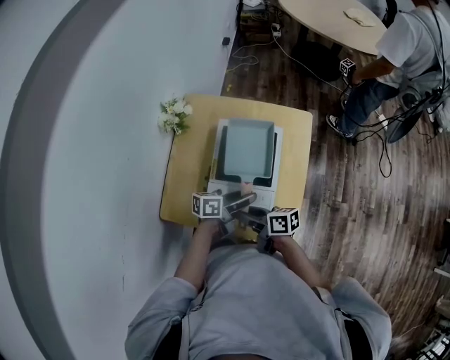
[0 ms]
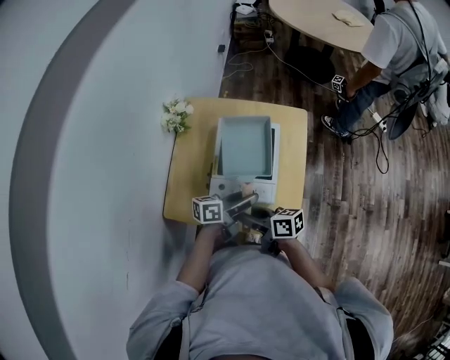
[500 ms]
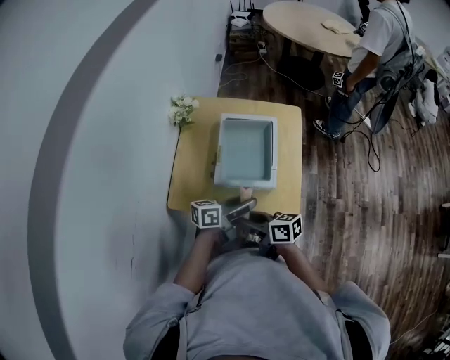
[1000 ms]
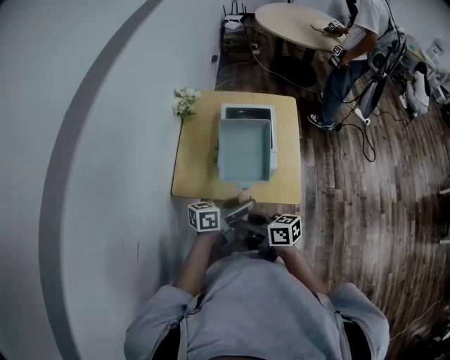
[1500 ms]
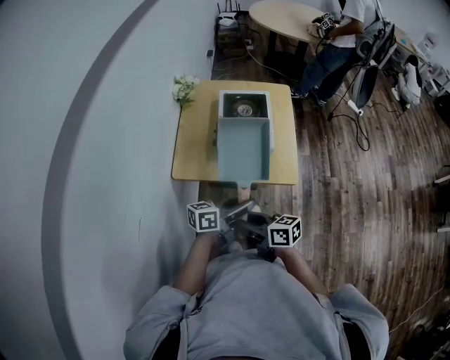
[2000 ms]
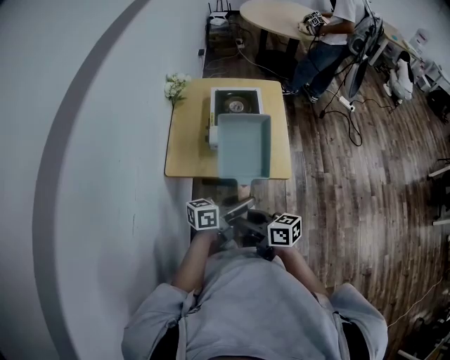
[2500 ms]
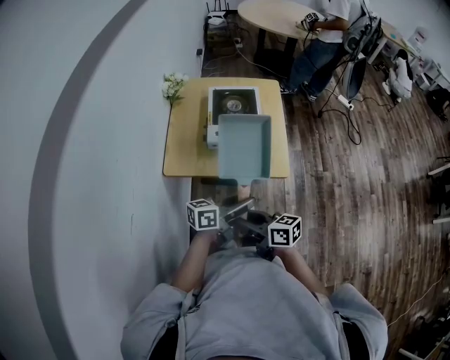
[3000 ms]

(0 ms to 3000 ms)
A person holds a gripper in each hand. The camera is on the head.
0 ms - 1500 ms: The left gripper shifts by approximately 25 cm. The right gripper moves about 20 cm.
1500 ms - 3000 ms: The grippers both shift backward by about 10 cm.

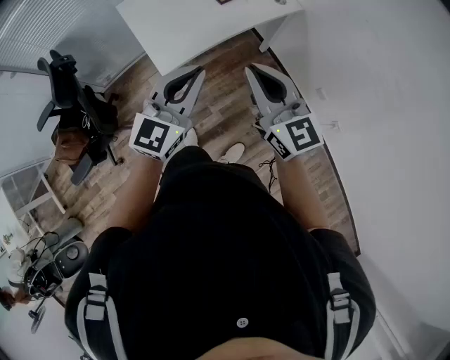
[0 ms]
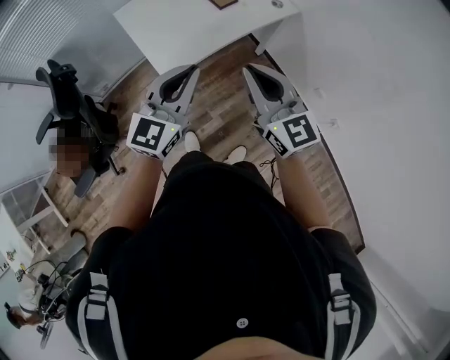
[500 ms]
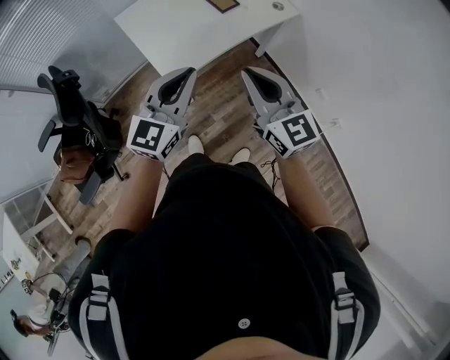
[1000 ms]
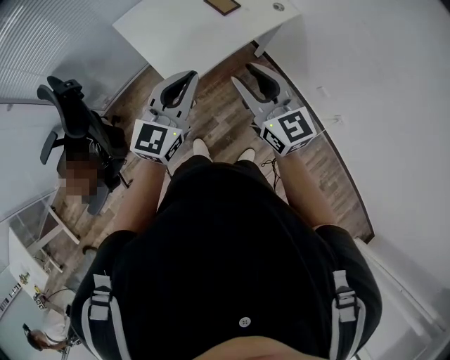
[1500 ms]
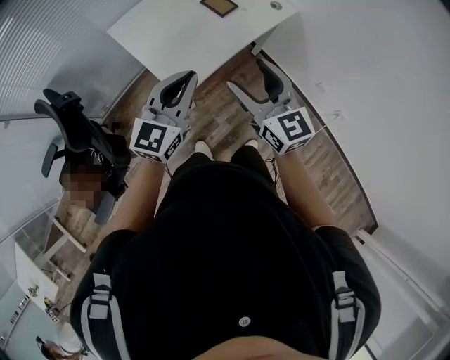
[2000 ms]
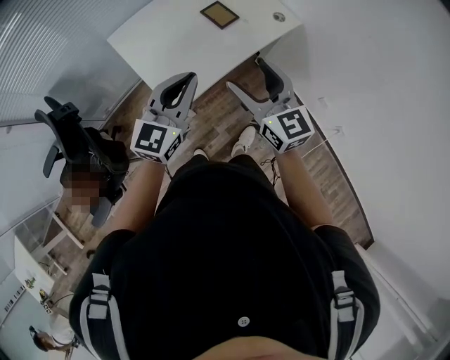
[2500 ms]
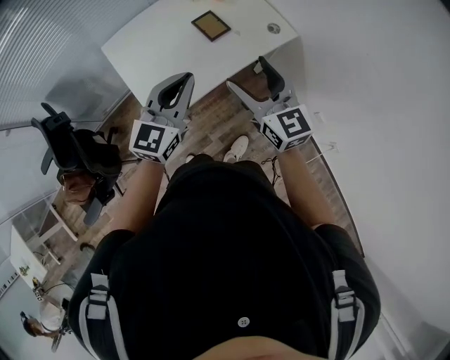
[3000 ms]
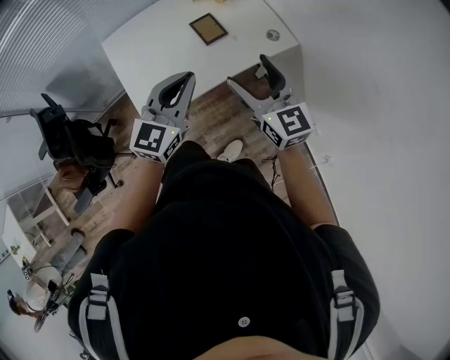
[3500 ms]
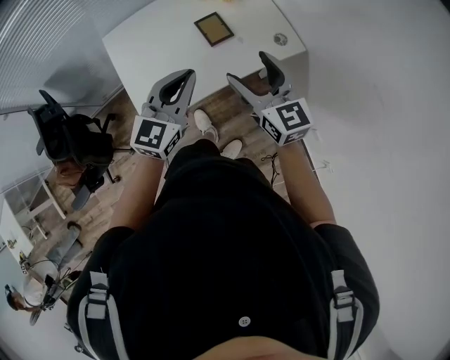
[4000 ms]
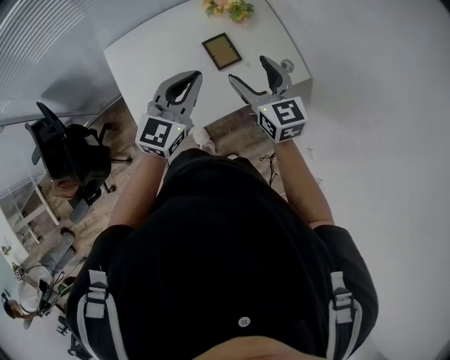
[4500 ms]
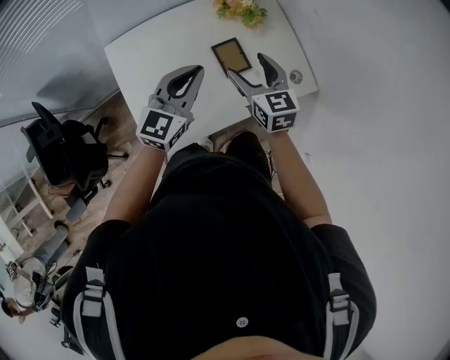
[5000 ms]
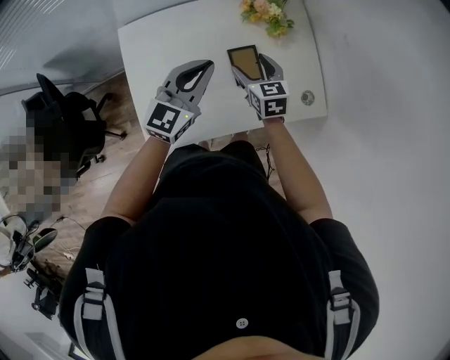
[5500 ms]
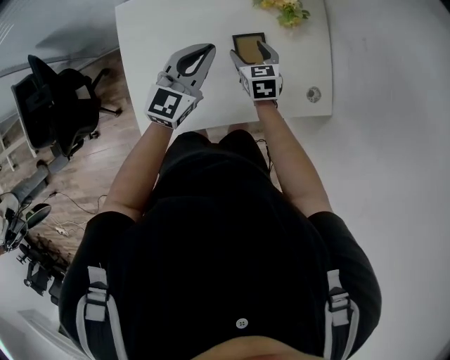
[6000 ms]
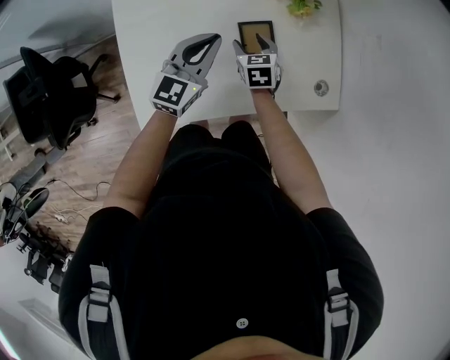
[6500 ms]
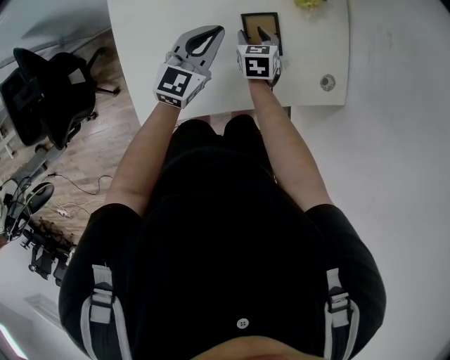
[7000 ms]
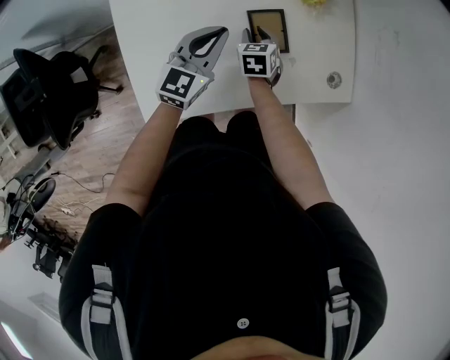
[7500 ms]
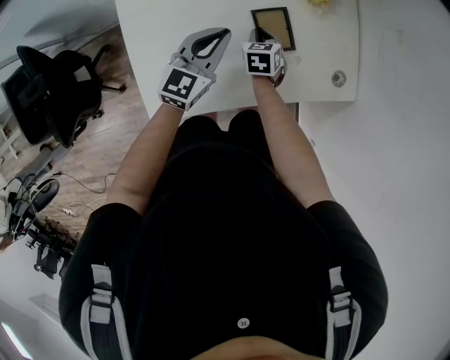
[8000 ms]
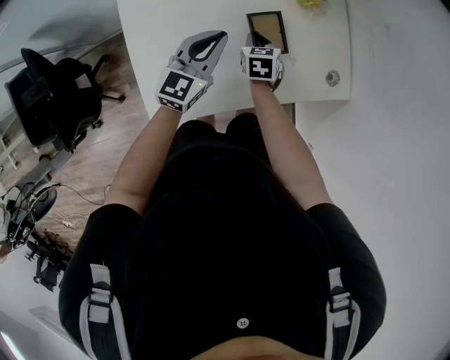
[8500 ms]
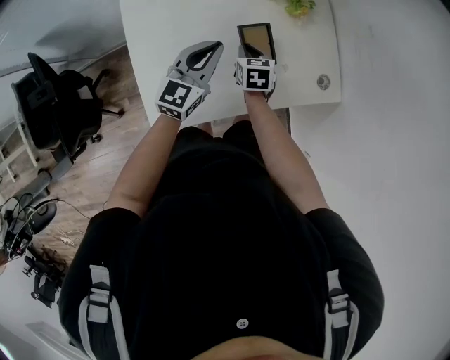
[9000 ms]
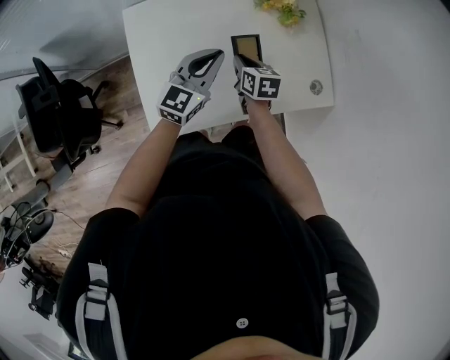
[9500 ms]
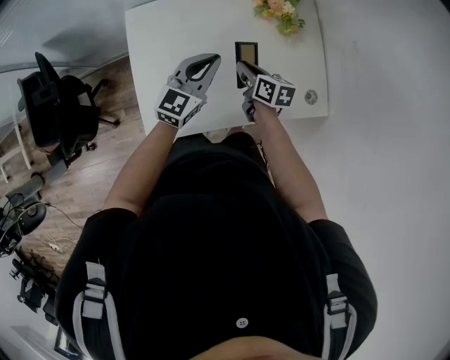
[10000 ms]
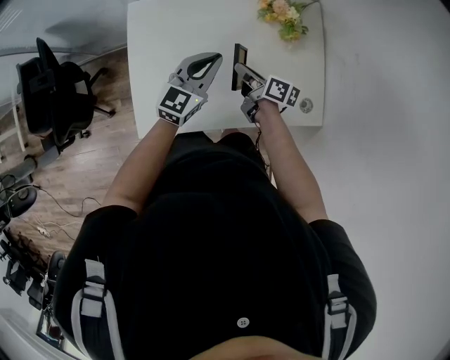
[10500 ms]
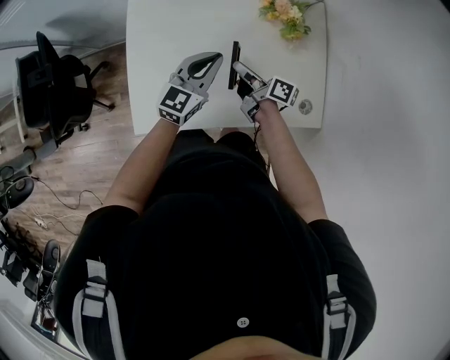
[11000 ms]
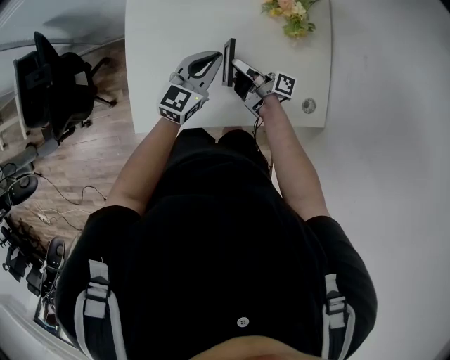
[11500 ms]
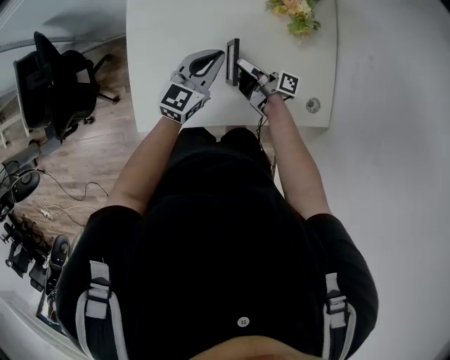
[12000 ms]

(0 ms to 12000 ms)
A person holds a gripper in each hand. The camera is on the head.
0 ms - 2000 ms: The grippers both shift to the left and forward by about 15 cm. The right gripper opens up.
2000 ms - 4000 ms: Both grippers travel together forward and to the right, approximately 30 cm.
4000 ms - 6000 ms: Both grippers move forward and downward, some 35 cm. The right gripper angles its fingers downward, by some 40 degrees.
6000 ms - 8000 ms: The two grippers go some 10 cm downward. The right gripper closes up.
8000 ms - 10000 ms: The left gripper is displaced upward by roughly 10 cm, while the right gripper travels upward by roughly 15 cm, and rotates about 40 degrees.
10000 ms - 12000 ms: Both grippers move downward, about 5 cm. The right gripper angles its fingers upward, by some 30 degrees.

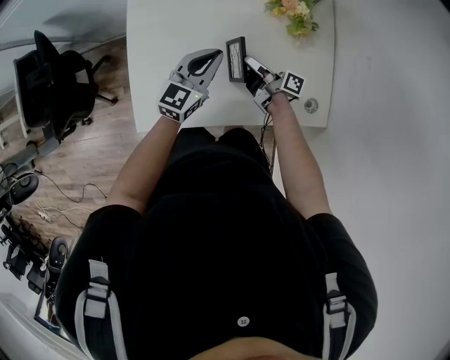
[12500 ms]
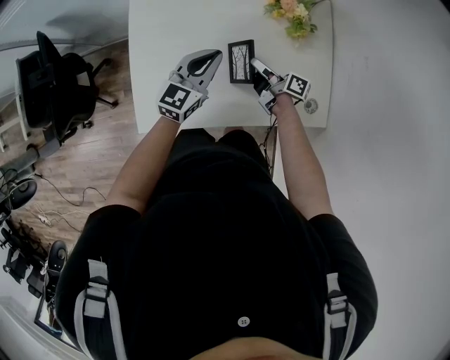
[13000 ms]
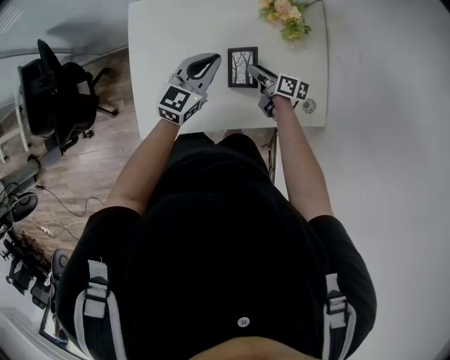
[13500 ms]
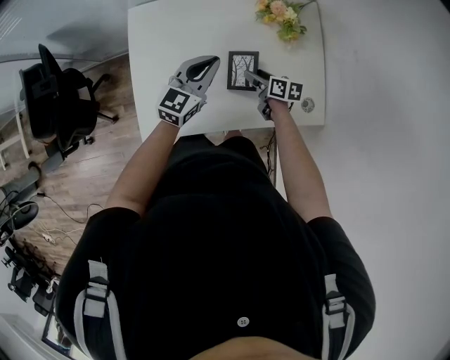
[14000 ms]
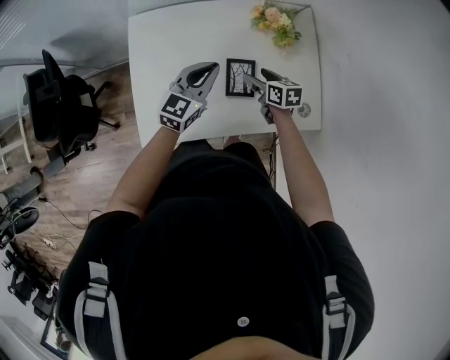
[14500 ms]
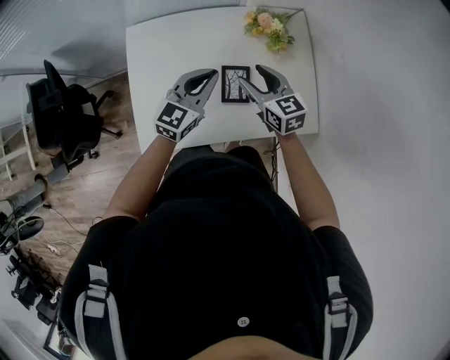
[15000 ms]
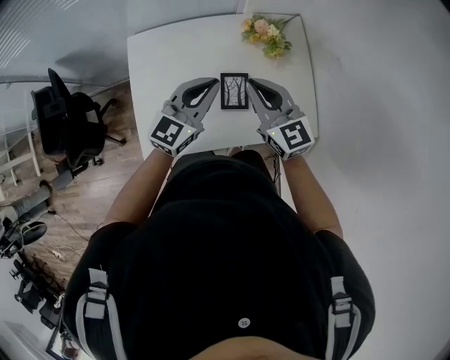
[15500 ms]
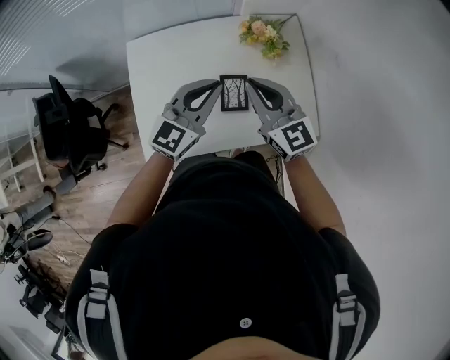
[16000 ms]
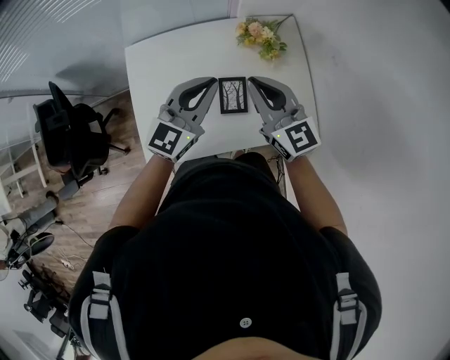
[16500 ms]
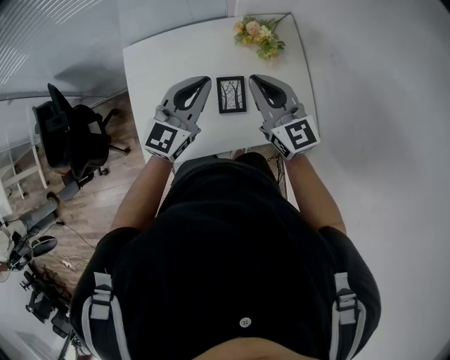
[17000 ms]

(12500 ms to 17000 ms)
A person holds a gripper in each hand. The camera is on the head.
12500 ms - 14500 ms: The right gripper rotates around the line of its fingers by some 50 degrees, counterclockwise from behind, and opens up.
14500 ms - 17000 ms: The left gripper goes about 15 cm upward. The right gripper heads upward, covering roughly 25 cm, tilts its fingers roughly 30 degrees upward, and closes.

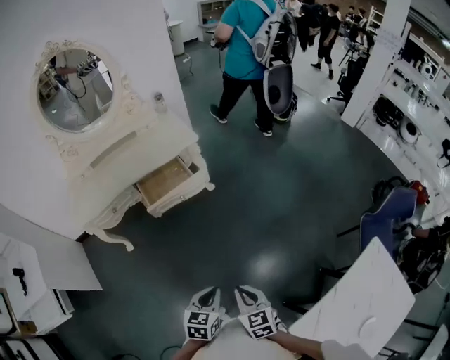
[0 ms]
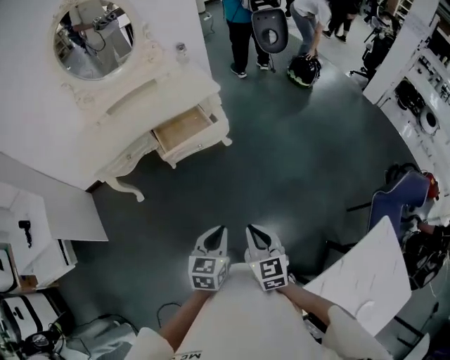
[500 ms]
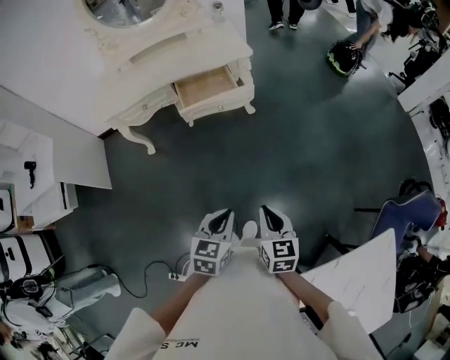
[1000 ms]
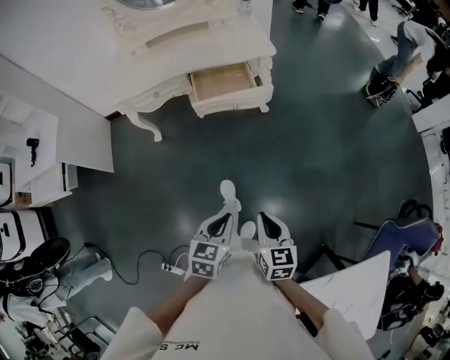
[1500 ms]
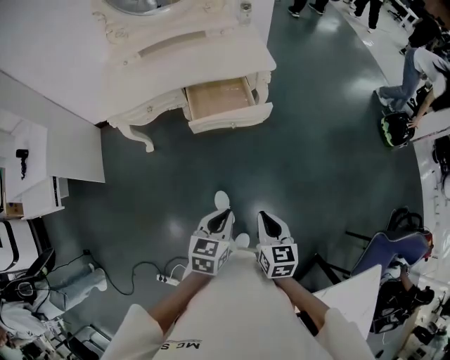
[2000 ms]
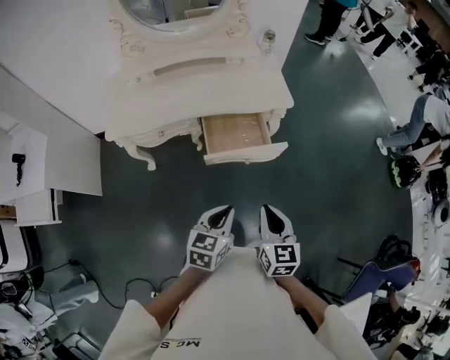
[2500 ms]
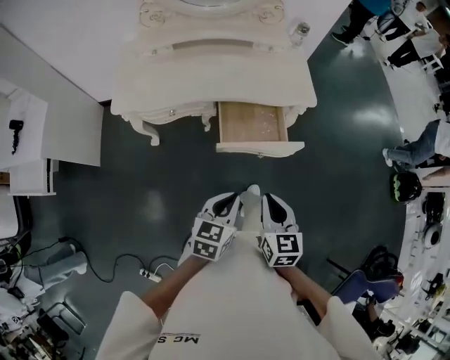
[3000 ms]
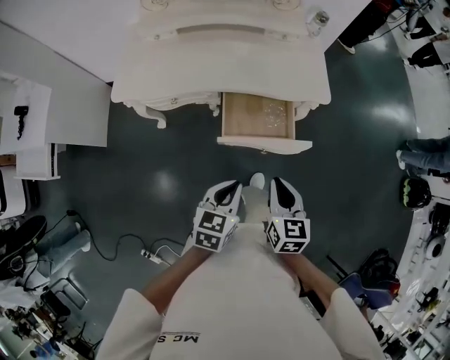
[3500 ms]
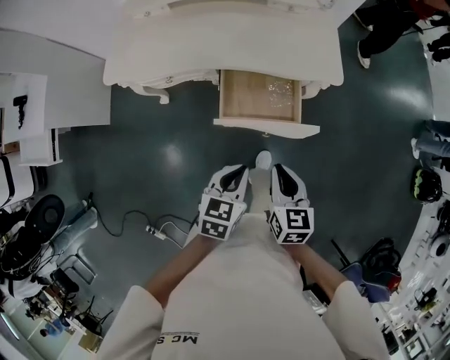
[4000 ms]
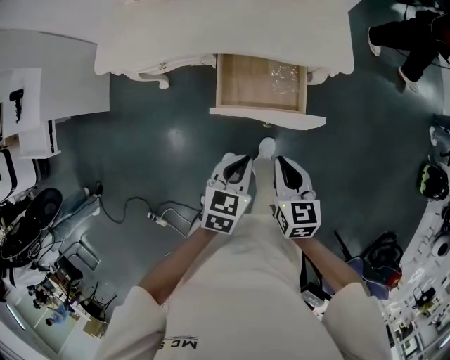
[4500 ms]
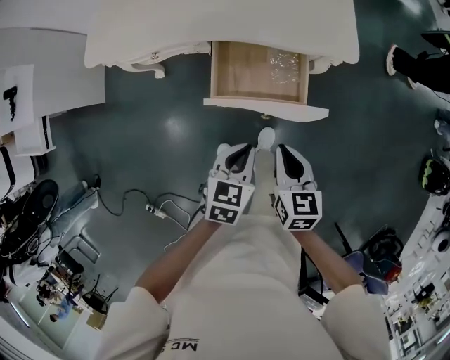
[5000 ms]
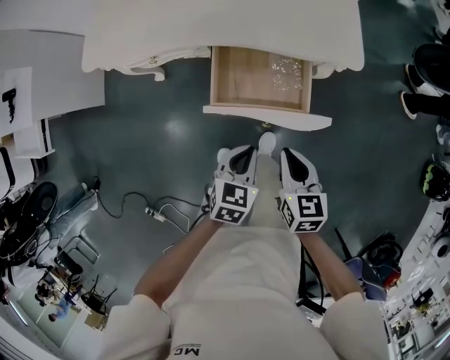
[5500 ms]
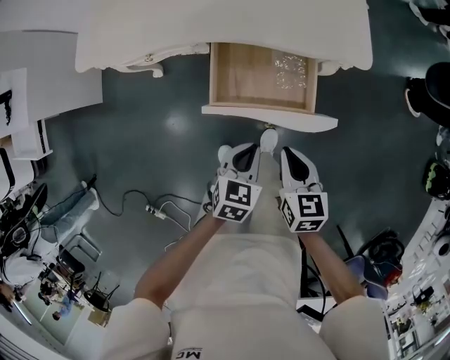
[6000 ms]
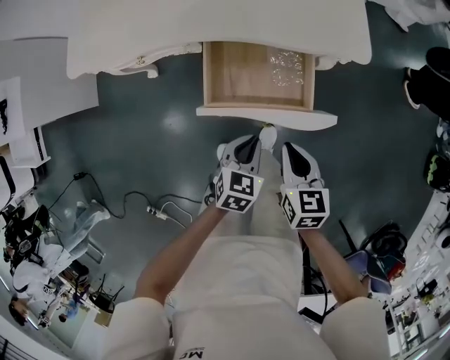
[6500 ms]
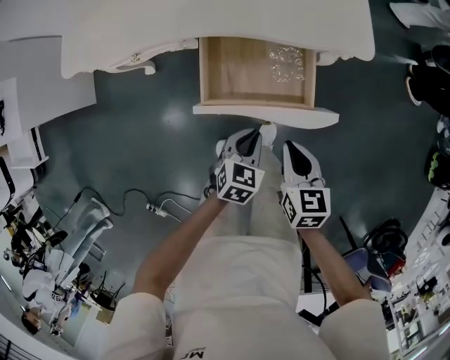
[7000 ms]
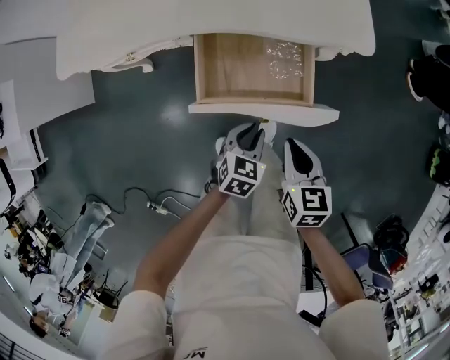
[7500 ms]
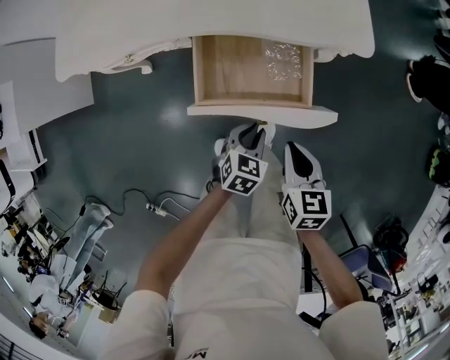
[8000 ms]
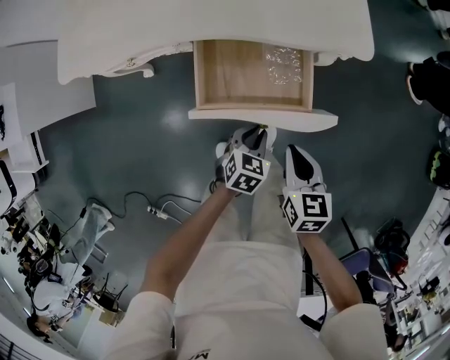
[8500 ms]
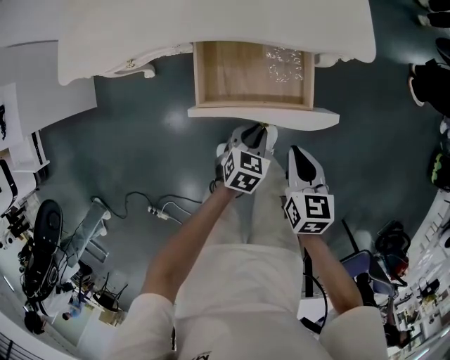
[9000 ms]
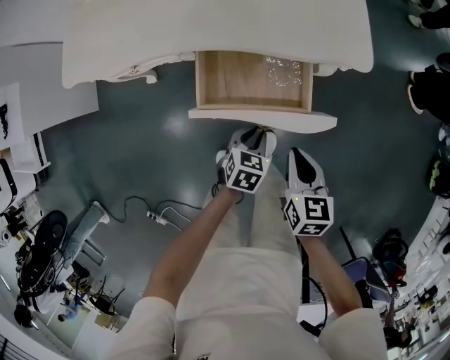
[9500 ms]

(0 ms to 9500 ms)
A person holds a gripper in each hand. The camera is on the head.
0 ms - 2000 ms: The two grippers go about 15 cm forward.
2000 ms - 4000 ms: The two grippers go about 30 cm forward.
4000 ms - 5500 ms: Both grippers travel together downward, some 10 cm.
5500 ms - 7500 ms: The right gripper goes about 5 cm downward; the left gripper heads downward, covering roughly 10 cm.
7500 ms - 9500 ms: There are only small adjustments of the grippers.
